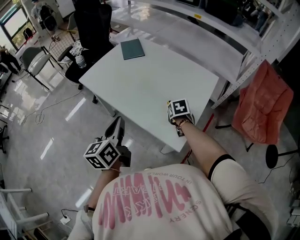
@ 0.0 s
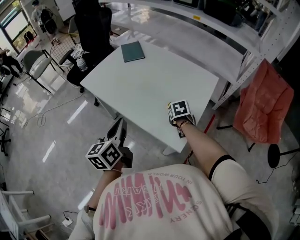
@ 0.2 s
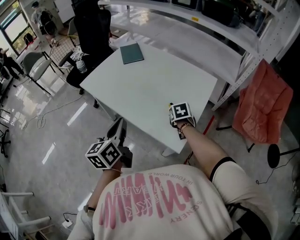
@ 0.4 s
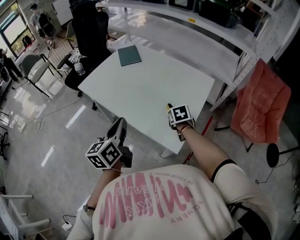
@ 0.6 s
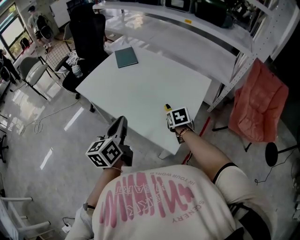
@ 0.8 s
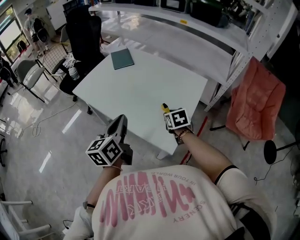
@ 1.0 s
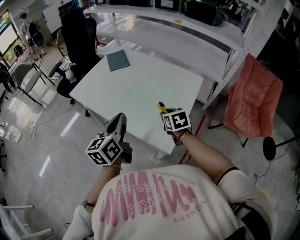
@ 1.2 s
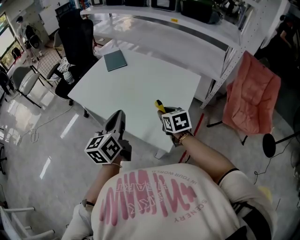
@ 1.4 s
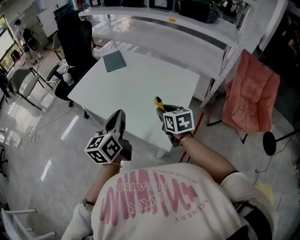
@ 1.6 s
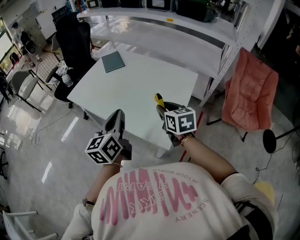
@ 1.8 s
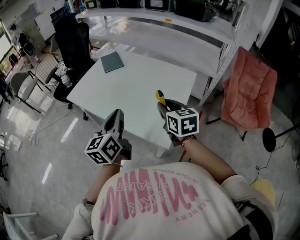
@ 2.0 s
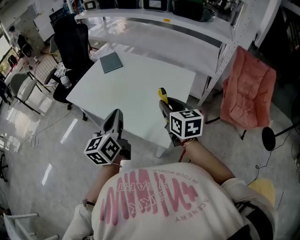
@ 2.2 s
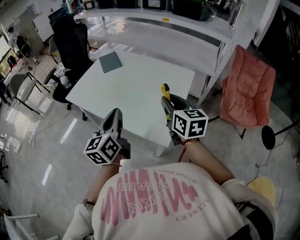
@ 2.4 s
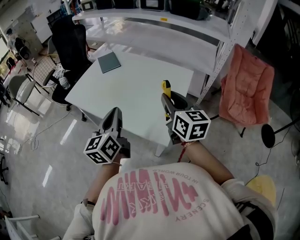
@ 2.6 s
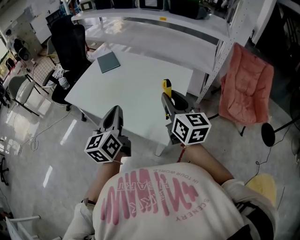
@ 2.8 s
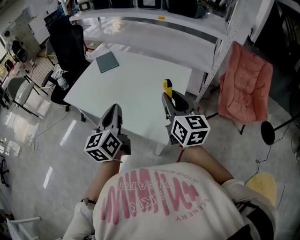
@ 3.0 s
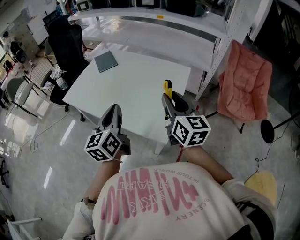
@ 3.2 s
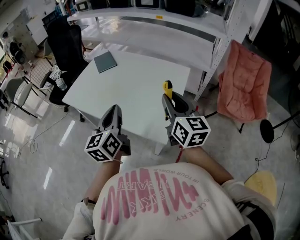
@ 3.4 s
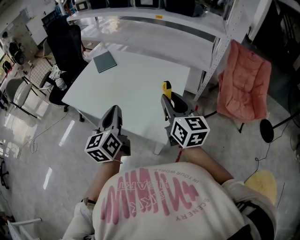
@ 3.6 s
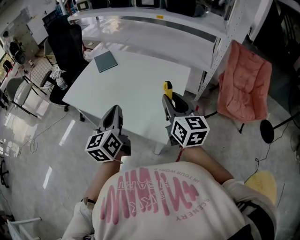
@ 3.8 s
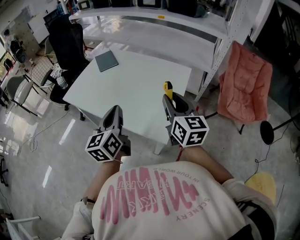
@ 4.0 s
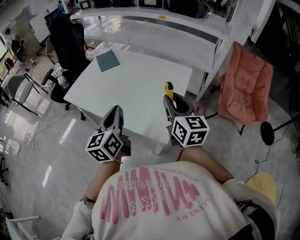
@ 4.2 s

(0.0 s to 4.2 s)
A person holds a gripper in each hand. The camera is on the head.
0.0 s - 1.4 s: The right gripper heads upward and backward, covering roughly 15 cm, and swivels about 20 degrees. Meanwhile the left gripper is displaced to the right by some 10 cm.
1.4 s - 2.8 s: The right gripper moves upward, some 15 cm, and angles its fingers upward, by about 30 degrees.
2.8 s - 4.2 s: The grippers make only small movements.

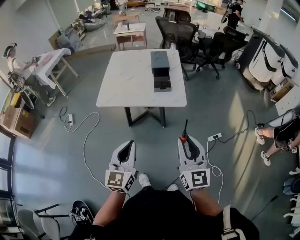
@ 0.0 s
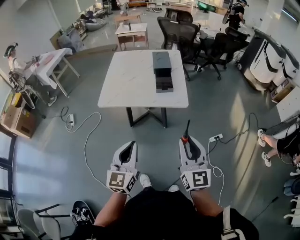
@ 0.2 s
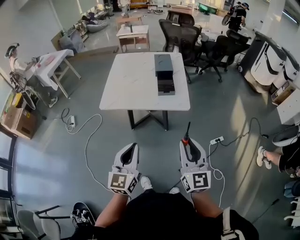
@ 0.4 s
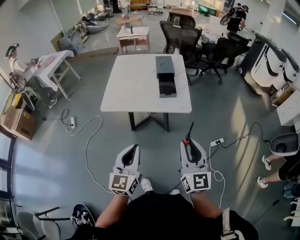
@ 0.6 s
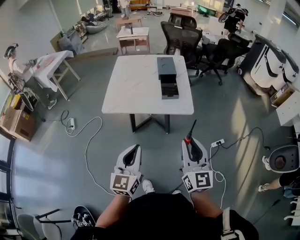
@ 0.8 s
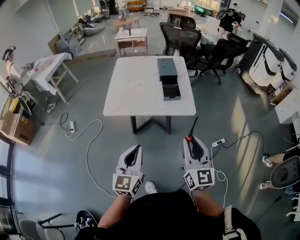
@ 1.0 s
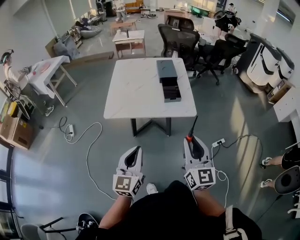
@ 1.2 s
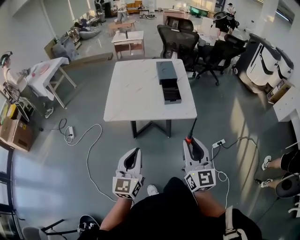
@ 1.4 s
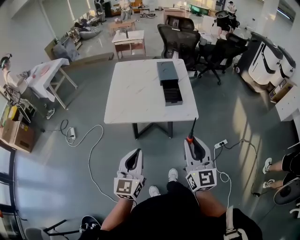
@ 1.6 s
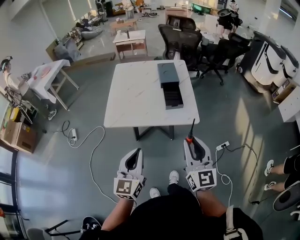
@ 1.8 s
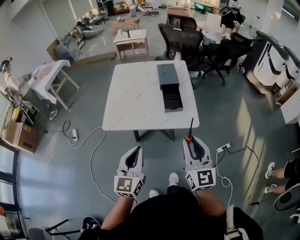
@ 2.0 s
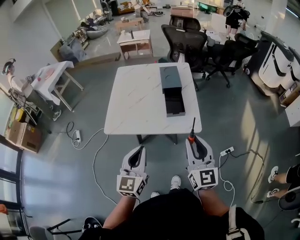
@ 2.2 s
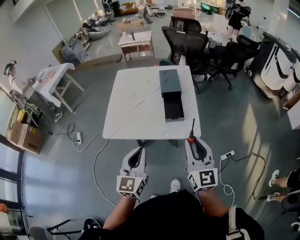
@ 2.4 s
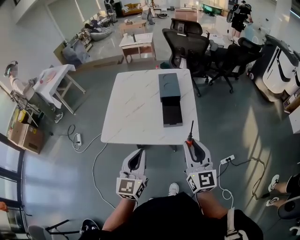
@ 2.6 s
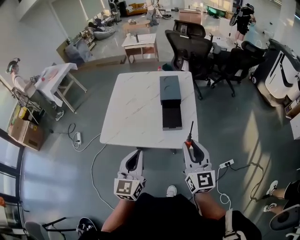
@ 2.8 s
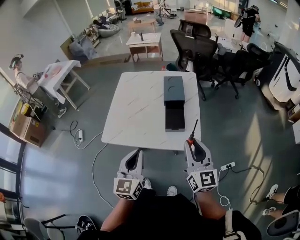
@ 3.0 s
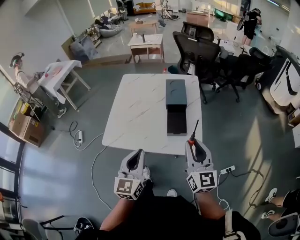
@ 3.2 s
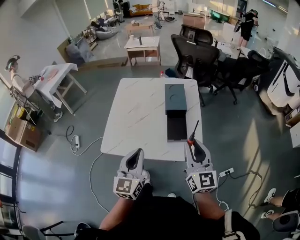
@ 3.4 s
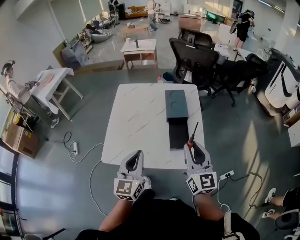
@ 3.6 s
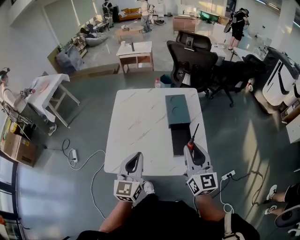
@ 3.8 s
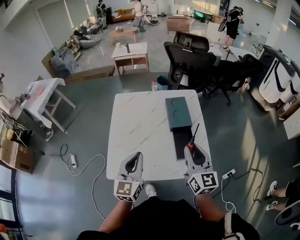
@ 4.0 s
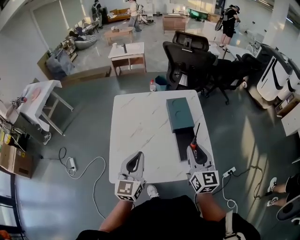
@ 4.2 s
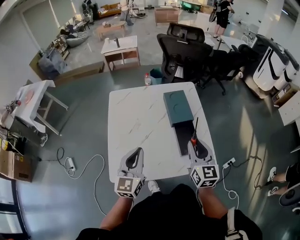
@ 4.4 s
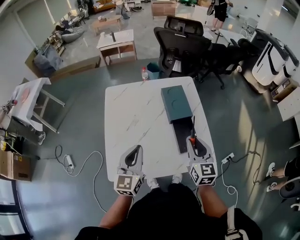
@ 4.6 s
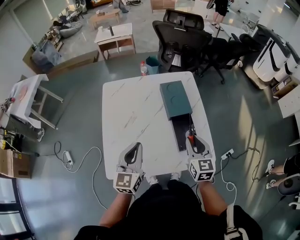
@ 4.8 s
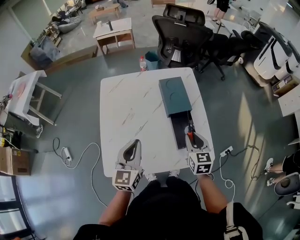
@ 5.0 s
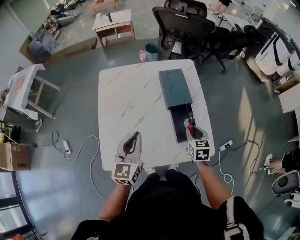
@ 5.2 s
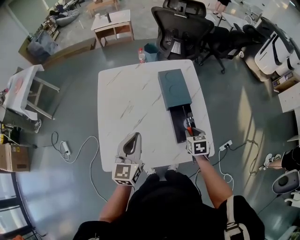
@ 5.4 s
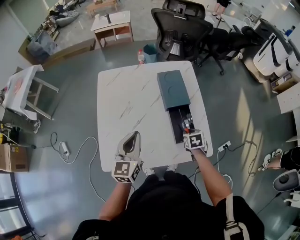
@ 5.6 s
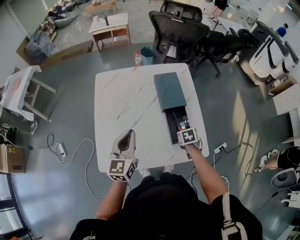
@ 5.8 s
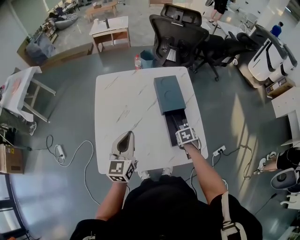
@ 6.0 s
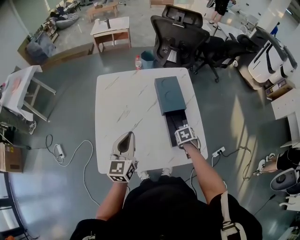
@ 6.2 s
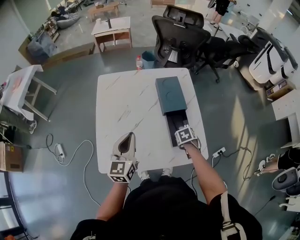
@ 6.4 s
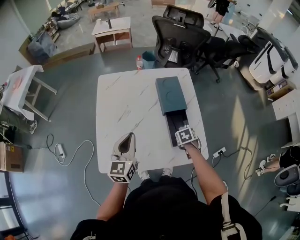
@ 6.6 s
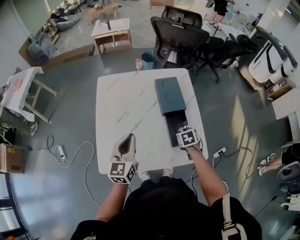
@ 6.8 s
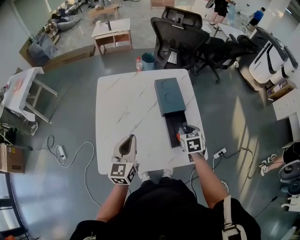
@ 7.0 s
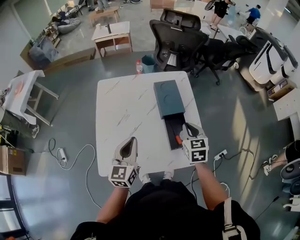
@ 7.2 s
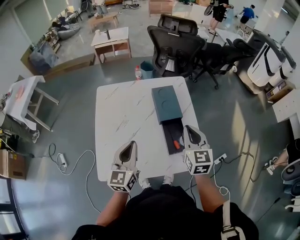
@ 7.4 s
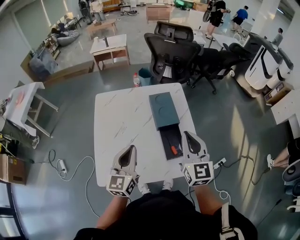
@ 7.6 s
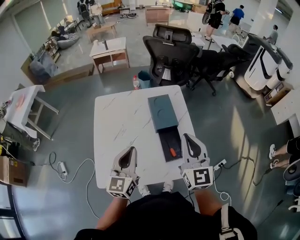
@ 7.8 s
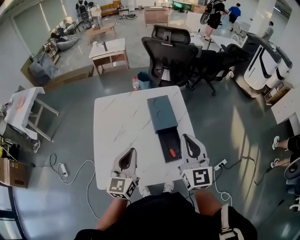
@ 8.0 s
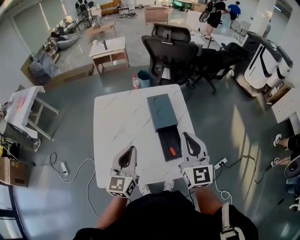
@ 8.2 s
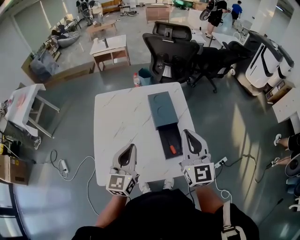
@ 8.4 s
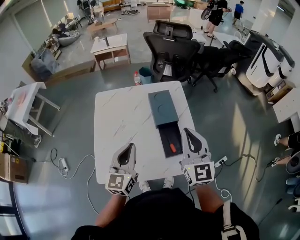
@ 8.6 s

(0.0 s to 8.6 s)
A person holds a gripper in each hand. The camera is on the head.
0.0 s - 1.4 s: The grippers both shift to the left and forward by roughly 10 cm.
1.4 s - 2.8 s: The right gripper goes approximately 20 cm forward; the left gripper is displaced forward and to the right by some 20 cm.
2.8 s - 4.4 s: The two grippers go roughly 25 cm forward and to the left.
4.4 s - 5.8 s: The right gripper heads downward, covering some 25 cm, and tilts its fingers approximately 60 degrees downward. Meanwhile the left gripper ends up some 5 cm from where it was.
5.8 s - 7.2 s: The right gripper heads upward, covering roughly 20 cm, and points its fingers roughly 30 degrees further upward.
7.2 s - 8.6 s: The left gripper heads upward, covering approximately 5 cm, while the right gripper shifts approximately 15 cm upward, and tilts its fingers about 30 degrees upward.

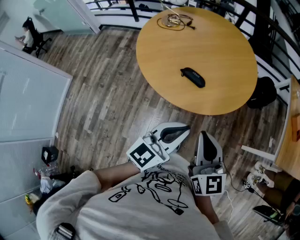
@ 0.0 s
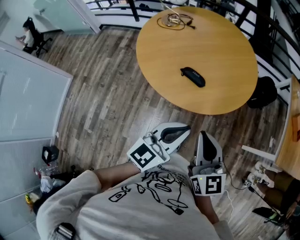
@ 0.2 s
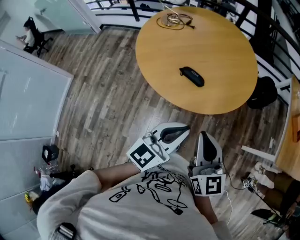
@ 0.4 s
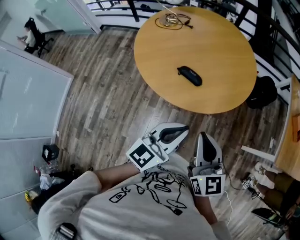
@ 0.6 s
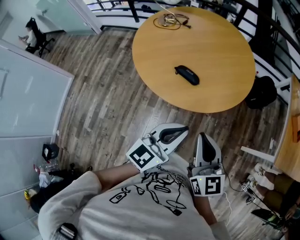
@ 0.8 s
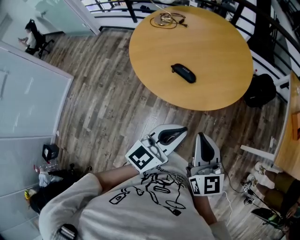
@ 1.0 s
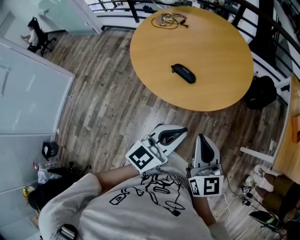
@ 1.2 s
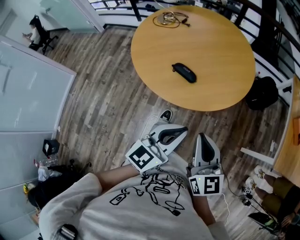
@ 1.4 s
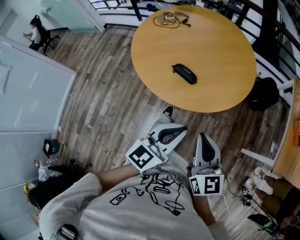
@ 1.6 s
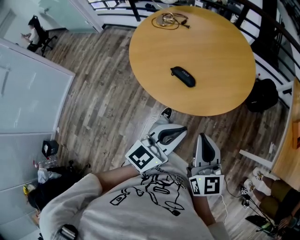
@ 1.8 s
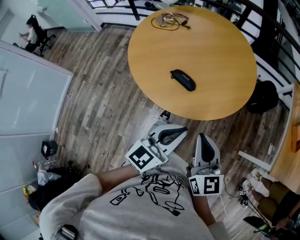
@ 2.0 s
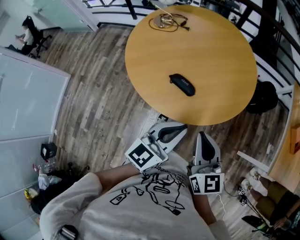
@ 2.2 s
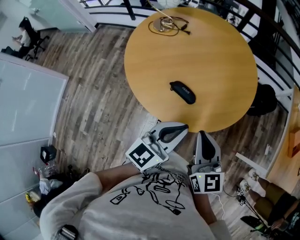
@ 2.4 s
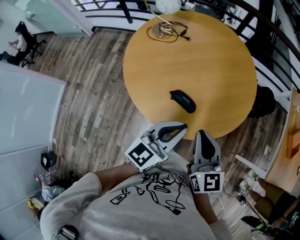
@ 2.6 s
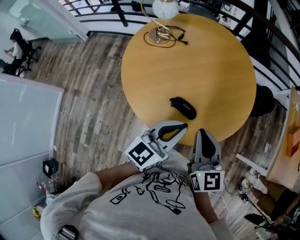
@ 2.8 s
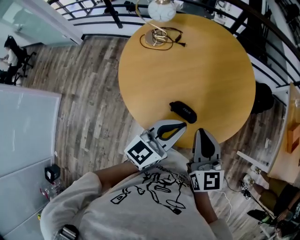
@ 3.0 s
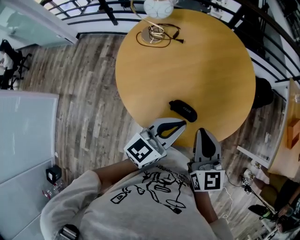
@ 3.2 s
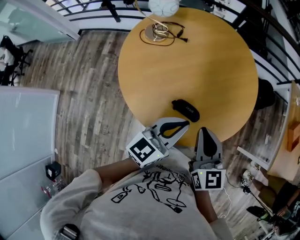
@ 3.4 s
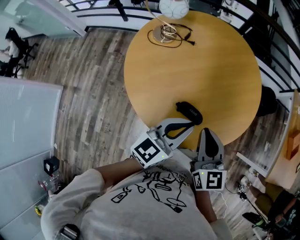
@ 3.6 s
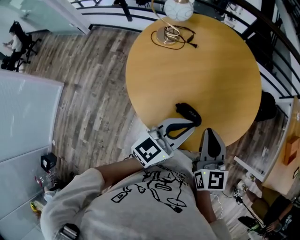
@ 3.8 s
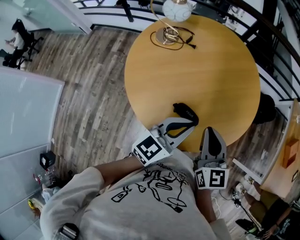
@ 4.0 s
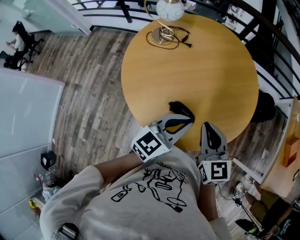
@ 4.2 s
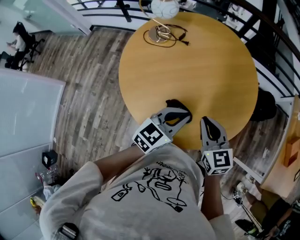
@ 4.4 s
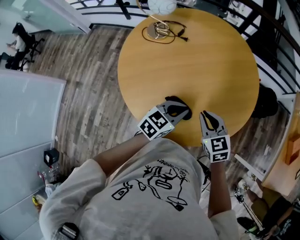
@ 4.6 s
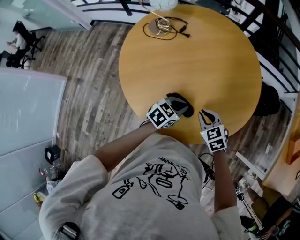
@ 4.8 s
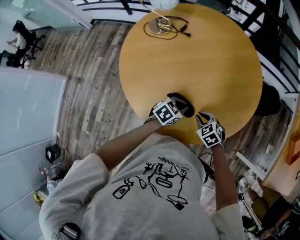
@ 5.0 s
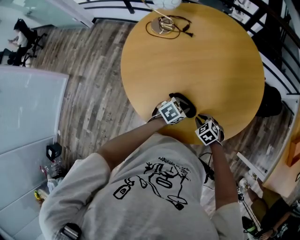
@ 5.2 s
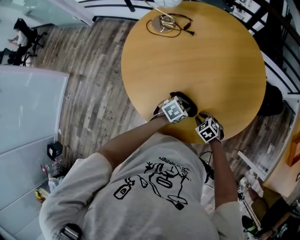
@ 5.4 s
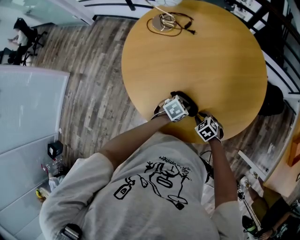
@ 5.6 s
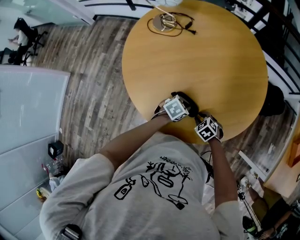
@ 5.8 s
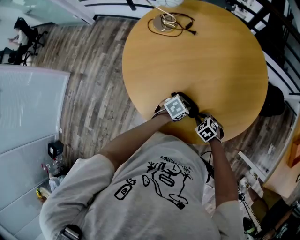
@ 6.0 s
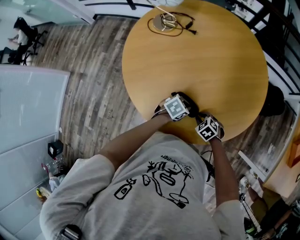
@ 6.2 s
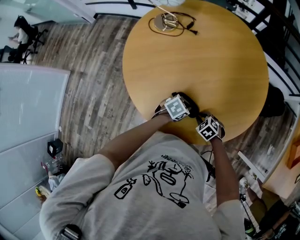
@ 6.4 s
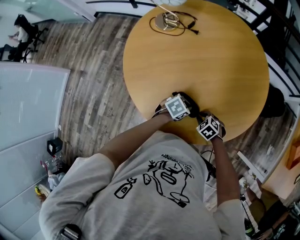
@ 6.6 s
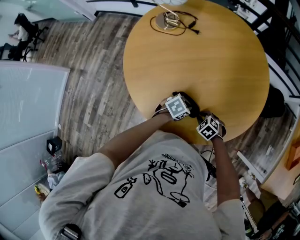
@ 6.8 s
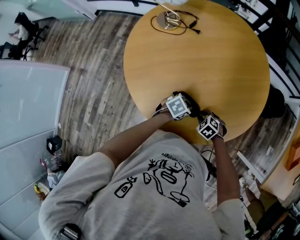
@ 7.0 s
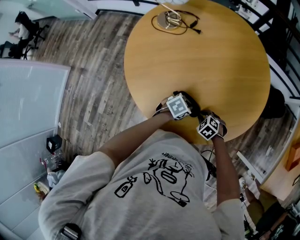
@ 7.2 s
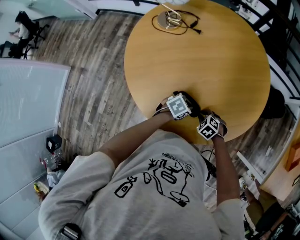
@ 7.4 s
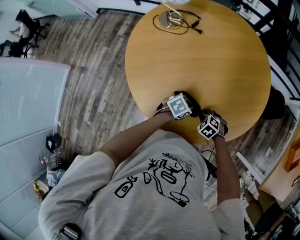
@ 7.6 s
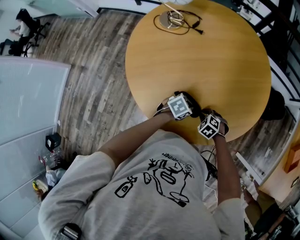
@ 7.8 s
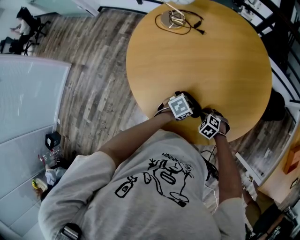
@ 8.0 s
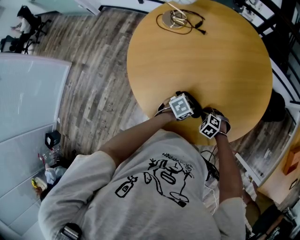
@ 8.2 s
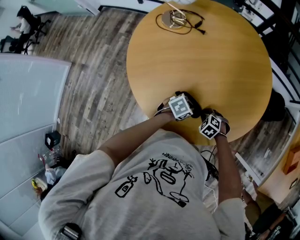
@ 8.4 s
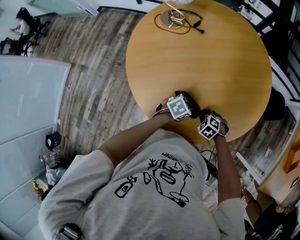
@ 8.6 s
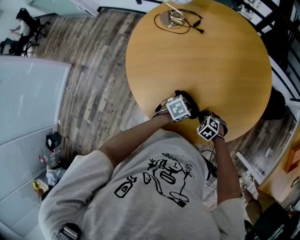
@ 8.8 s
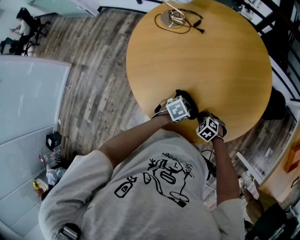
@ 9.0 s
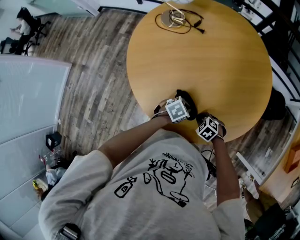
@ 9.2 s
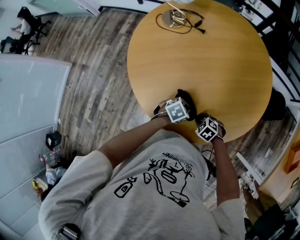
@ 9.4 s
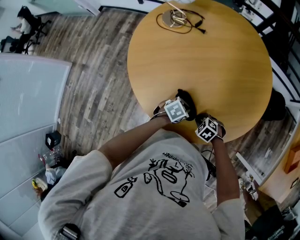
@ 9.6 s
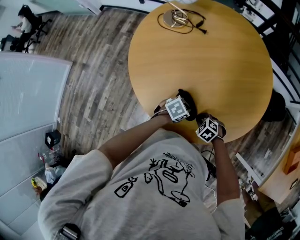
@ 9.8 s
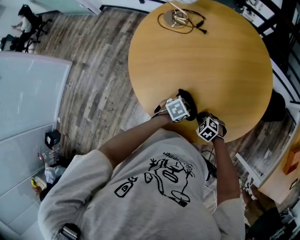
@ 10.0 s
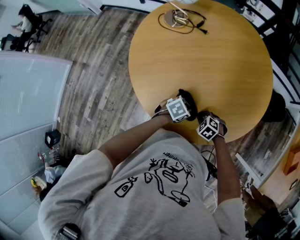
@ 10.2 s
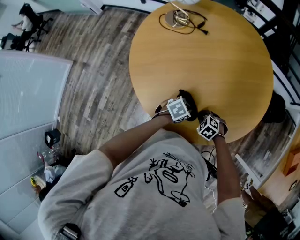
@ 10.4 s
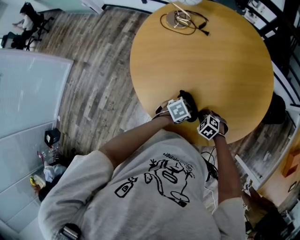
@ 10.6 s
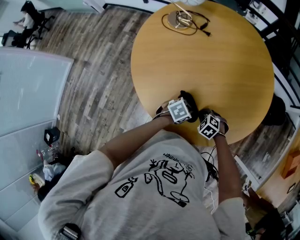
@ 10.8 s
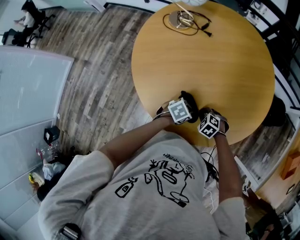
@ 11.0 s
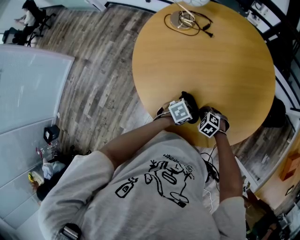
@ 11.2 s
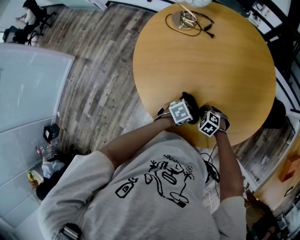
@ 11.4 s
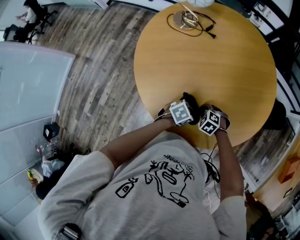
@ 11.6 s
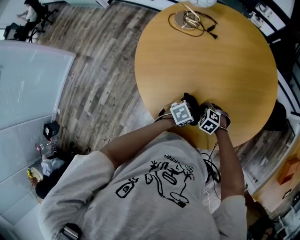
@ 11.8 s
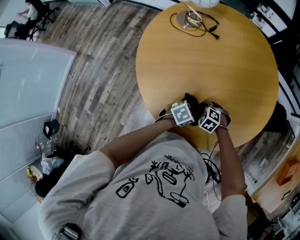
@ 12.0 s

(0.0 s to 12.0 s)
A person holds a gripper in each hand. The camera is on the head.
0.0 s - 1.6 s: Both grippers move to the right, some 10 cm.
1.6 s - 3.0 s: Both grippers move forward and to the left, approximately 30 cm.
3.0 s - 4.4 s: The left gripper heads downward and forward, covering roughly 10 cm; the right gripper travels forward and downward by roughly 10 cm.
4.4 s - 6.0 s: The two grippers go some 30 cm downward. The left gripper tips its fingers downward by approximately 30 degrees. Meanwhile the right gripper tips its fingers downward by about 40 degrees.
6.0 s - 7.6 s: The grippers move only a little.
7.6 s - 10.4 s: The grippers make only small movements.
10.4 s - 12.0 s: The right gripper shifts by approximately 10 cm.
